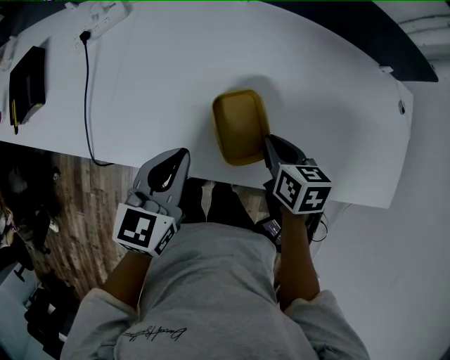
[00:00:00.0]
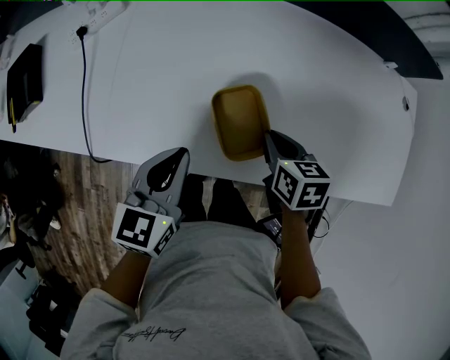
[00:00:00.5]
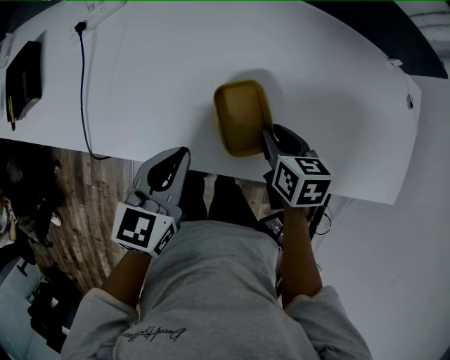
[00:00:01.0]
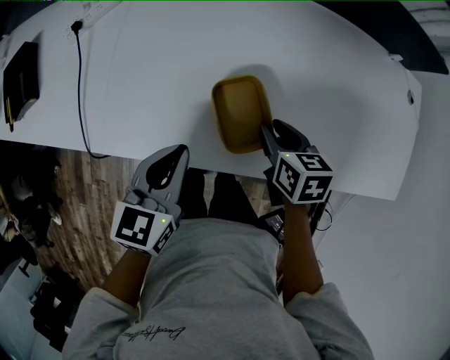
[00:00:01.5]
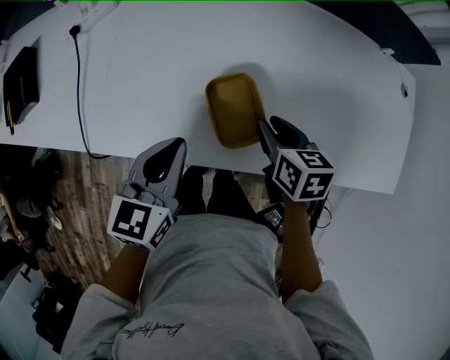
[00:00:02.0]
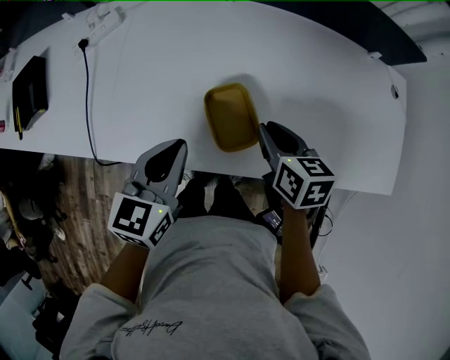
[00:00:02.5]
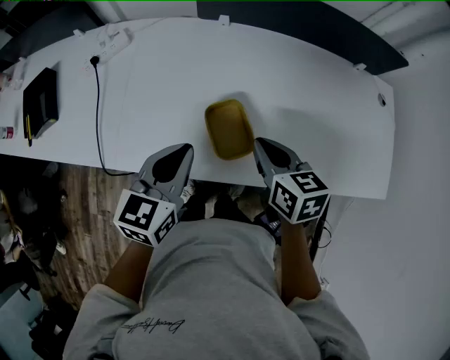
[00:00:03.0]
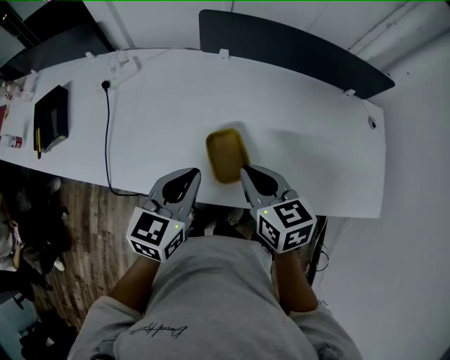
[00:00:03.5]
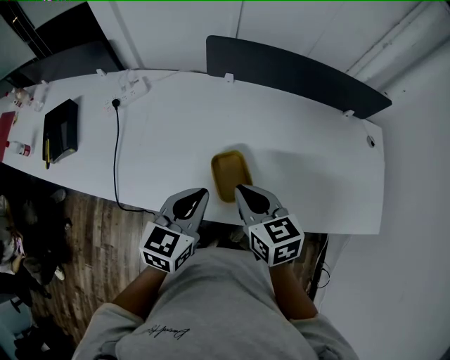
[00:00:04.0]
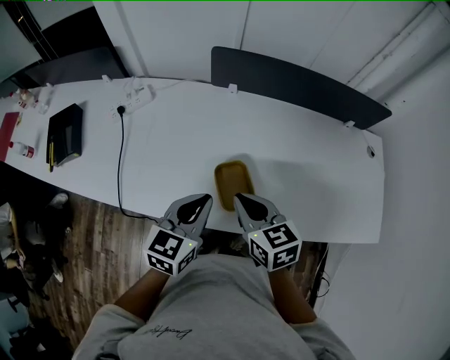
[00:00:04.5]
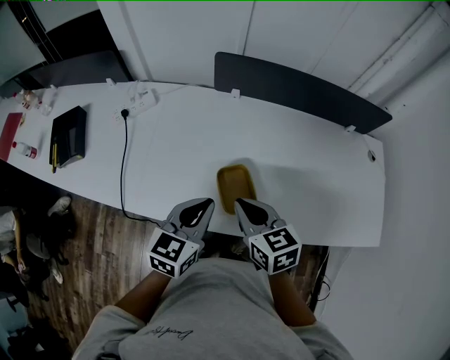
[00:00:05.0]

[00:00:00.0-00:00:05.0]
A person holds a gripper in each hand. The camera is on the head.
00:00:00.0 to 00:00:02.5: There are only small adjustments of the grippers.
00:00:02.5 to 00:00:05.0: The right gripper heads upward and to the left, covering approximately 15 cm, and rotates approximately 20 degrees. The left gripper is displaced upward by roughly 5 cm.

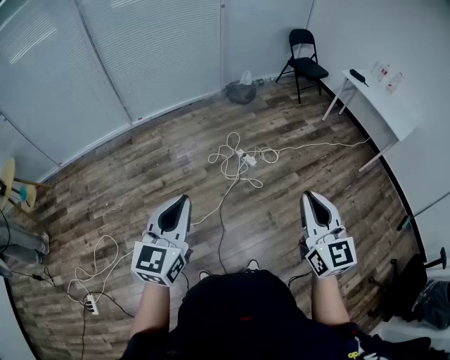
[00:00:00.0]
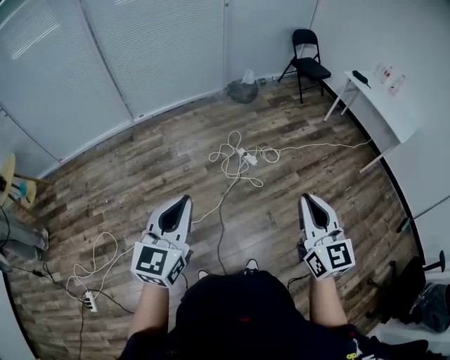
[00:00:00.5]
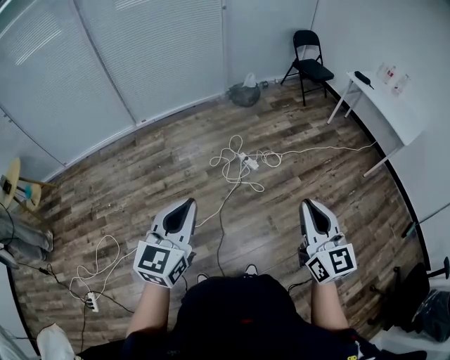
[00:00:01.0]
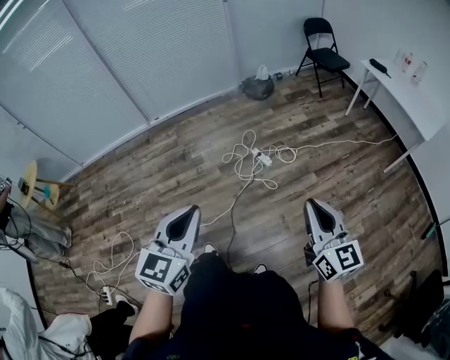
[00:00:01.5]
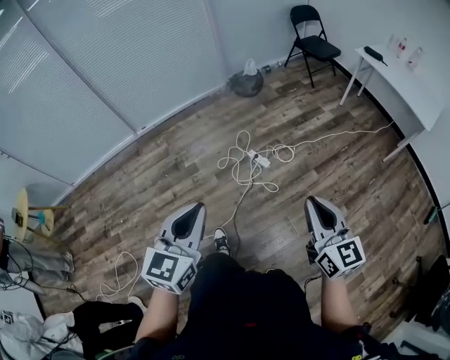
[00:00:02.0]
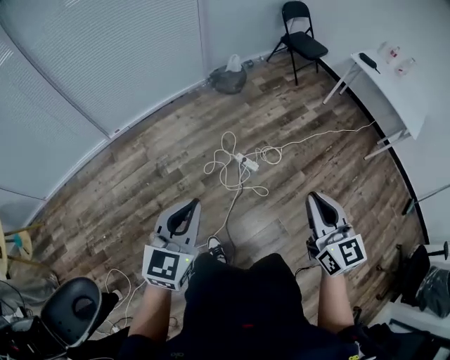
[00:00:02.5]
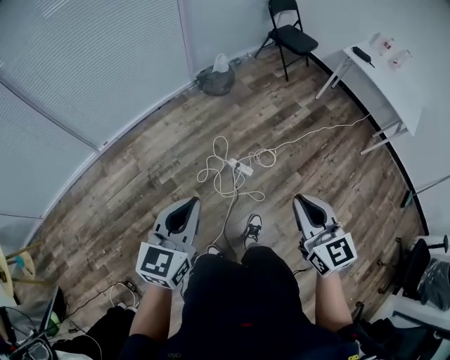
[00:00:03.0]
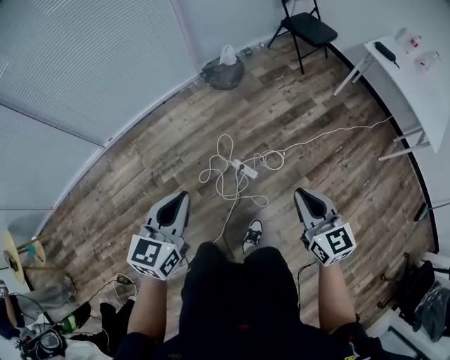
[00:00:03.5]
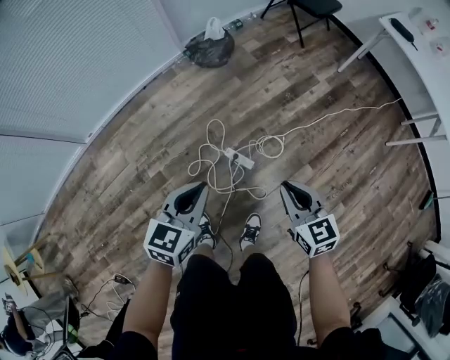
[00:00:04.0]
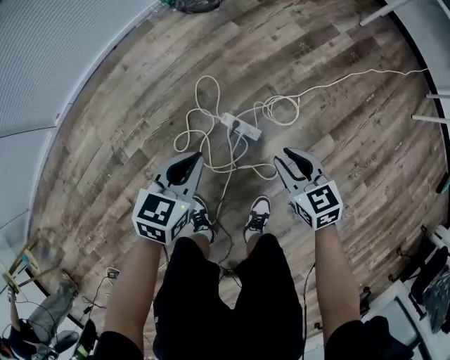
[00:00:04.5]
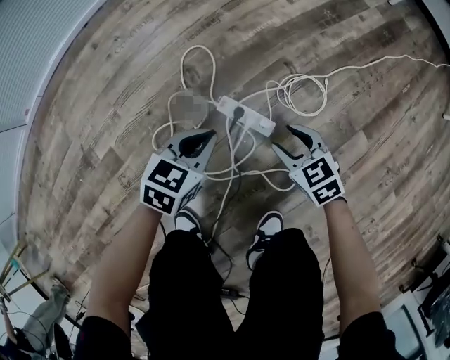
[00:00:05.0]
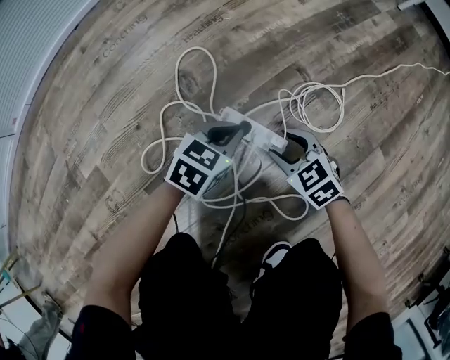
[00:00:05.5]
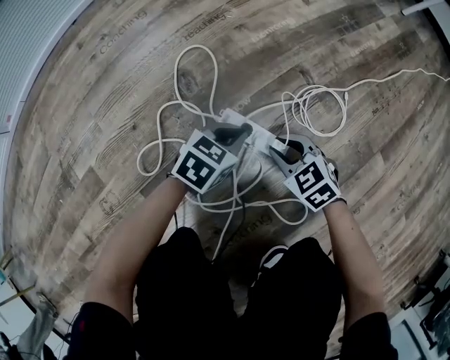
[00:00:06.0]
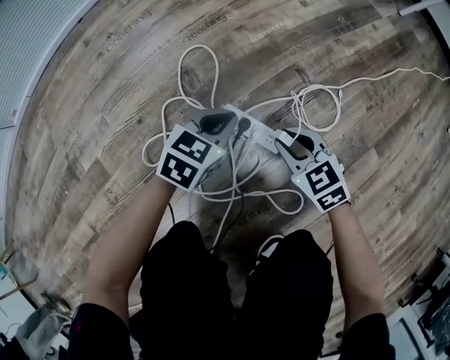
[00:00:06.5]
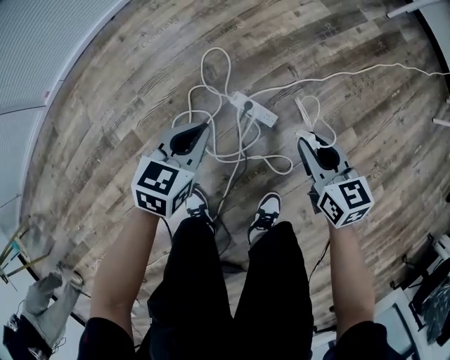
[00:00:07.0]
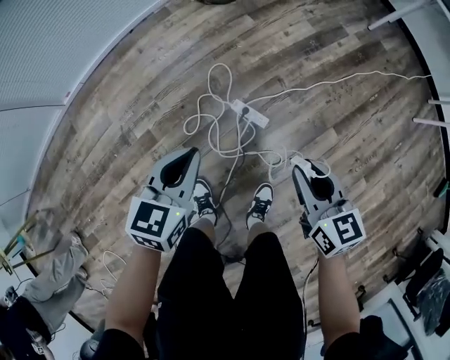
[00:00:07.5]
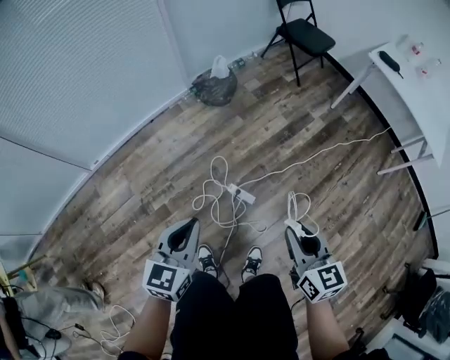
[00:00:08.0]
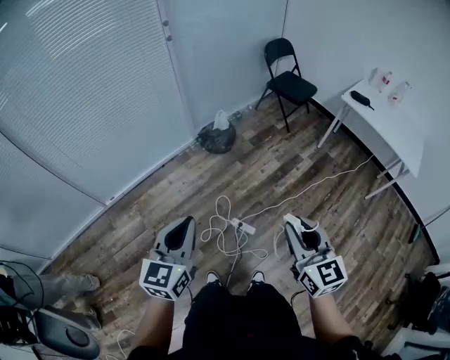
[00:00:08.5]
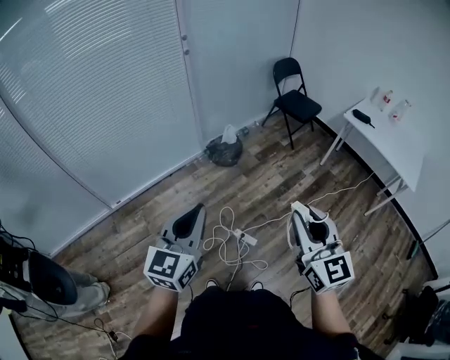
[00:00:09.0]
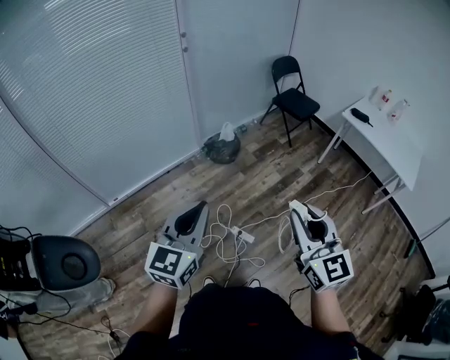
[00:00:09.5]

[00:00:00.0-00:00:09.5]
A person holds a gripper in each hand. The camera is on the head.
00:00:00.0 to 00:00:02.0: The left gripper travels forward and to the right by approximately 20 cm. Meanwhile the right gripper moves forward, downward and to the right, approximately 25 cm.
00:00:02.0 to 00:00:04.0: Both grippers are carried forward, about 50 cm. The two grippers go approximately 30 cm downward. The left gripper changes its angle by approximately 20 degrees; the right gripper changes its angle by some 20 degrees.
00:00:04.0 to 00:00:05.5: Both grippers move downward, some 80 cm. The right gripper changes its angle by approximately 30 degrees, and opens up, while the left gripper changes its angle by roughly 20 degrees.
00:00:05.5 to 00:00:07.5: Both grippers move upward, roughly 60 cm. The left gripper swivels approximately 30 degrees. Meanwhile the right gripper changes its angle by approximately 40 degrees, and closes.
00:00:07.5 to 00:00:09.5: Both grippers travel together upward, approximately 60 cm. The left gripper points its fingers roughly 30 degrees further upward. Meanwhile the right gripper rotates roughly 40 degrees.

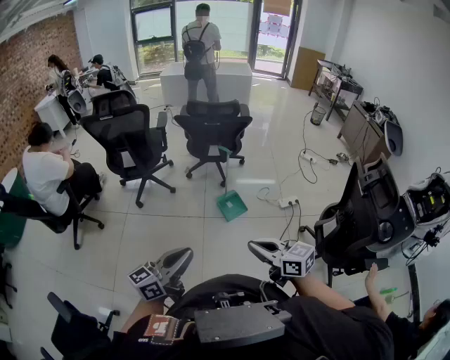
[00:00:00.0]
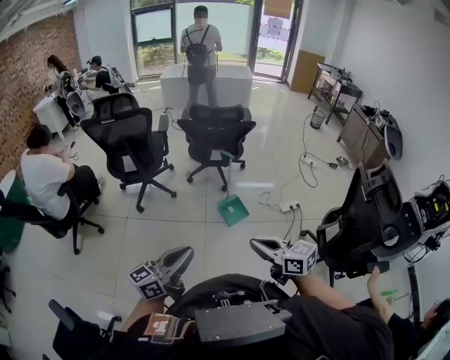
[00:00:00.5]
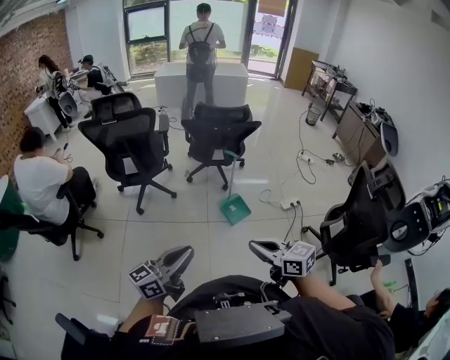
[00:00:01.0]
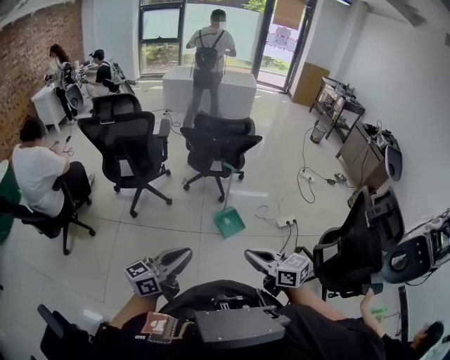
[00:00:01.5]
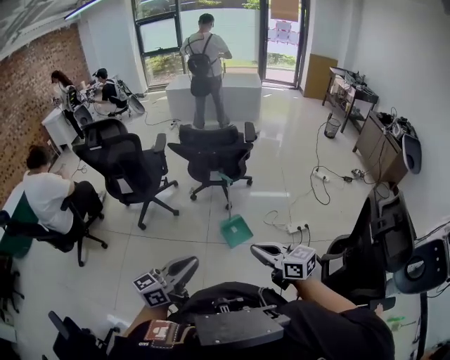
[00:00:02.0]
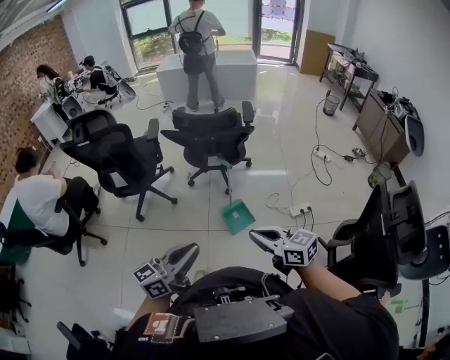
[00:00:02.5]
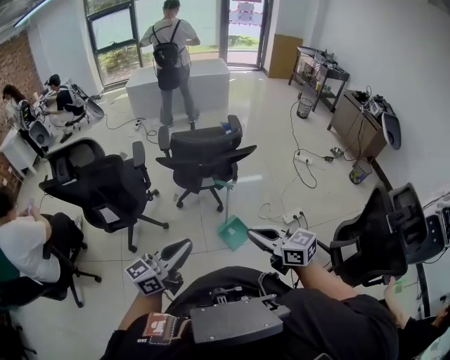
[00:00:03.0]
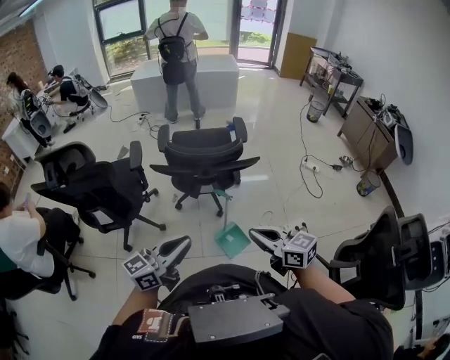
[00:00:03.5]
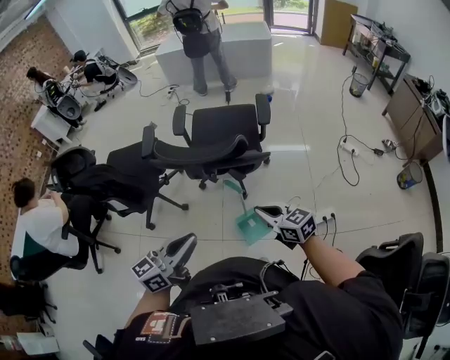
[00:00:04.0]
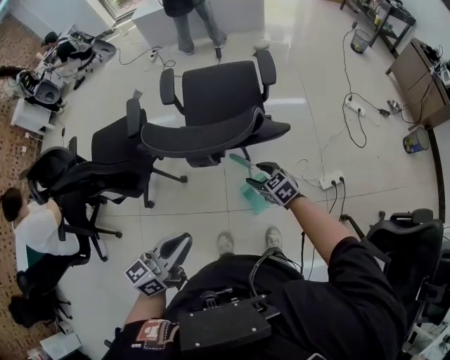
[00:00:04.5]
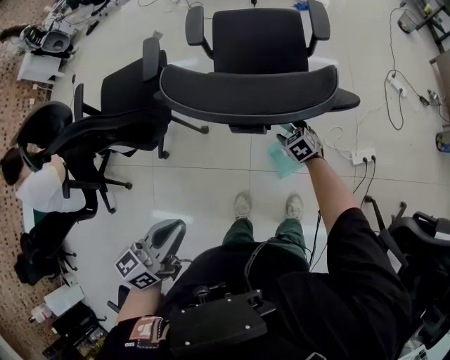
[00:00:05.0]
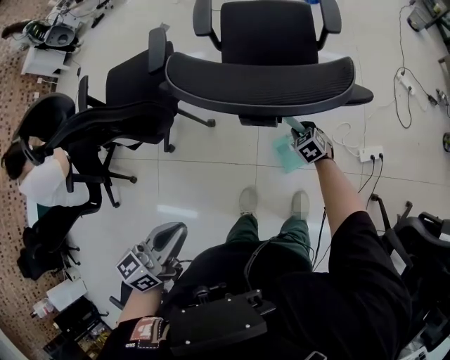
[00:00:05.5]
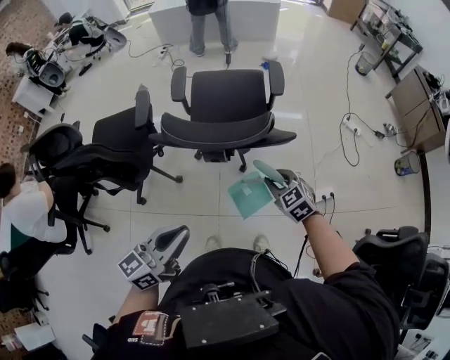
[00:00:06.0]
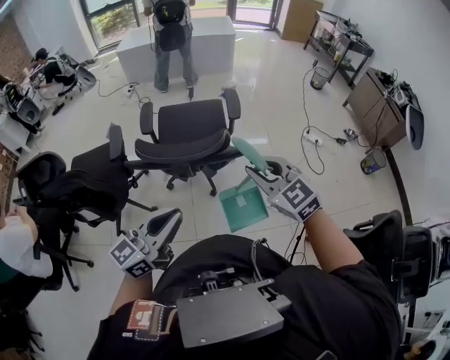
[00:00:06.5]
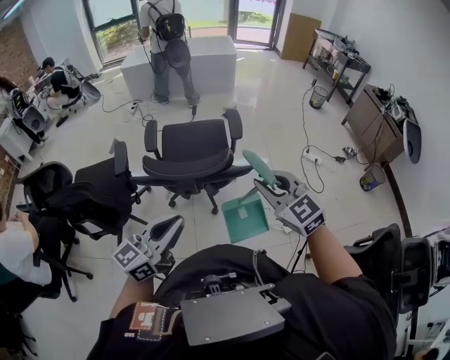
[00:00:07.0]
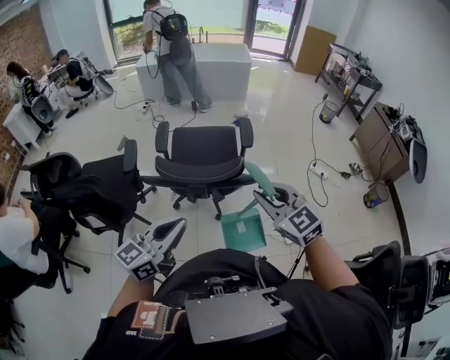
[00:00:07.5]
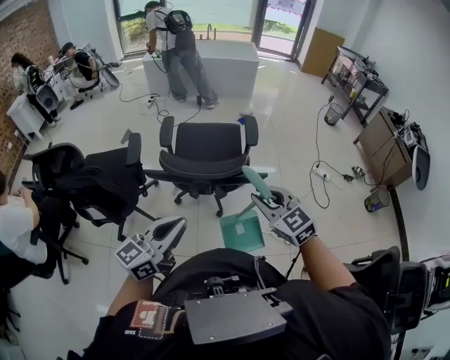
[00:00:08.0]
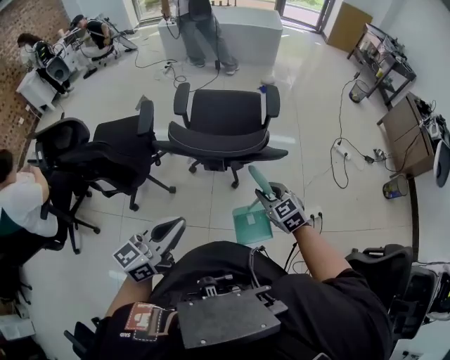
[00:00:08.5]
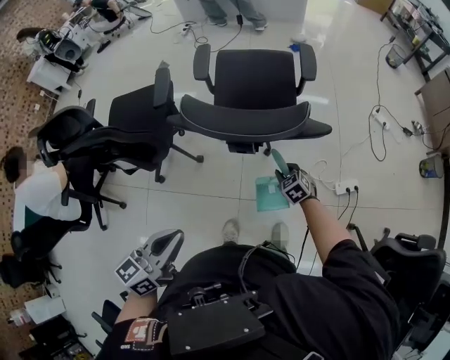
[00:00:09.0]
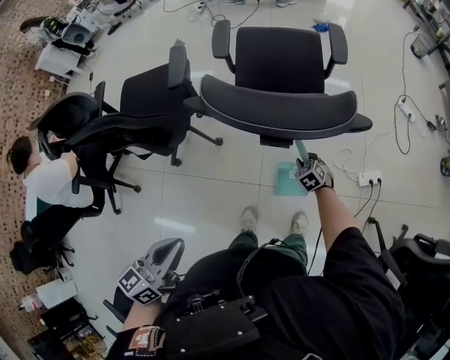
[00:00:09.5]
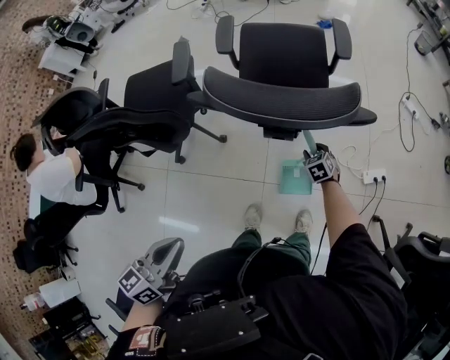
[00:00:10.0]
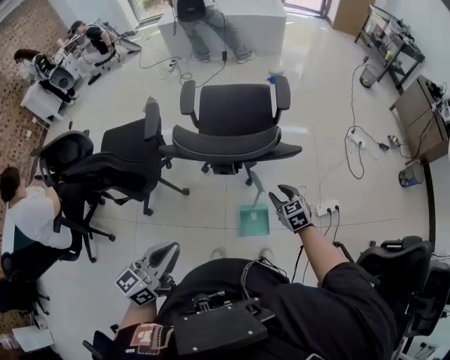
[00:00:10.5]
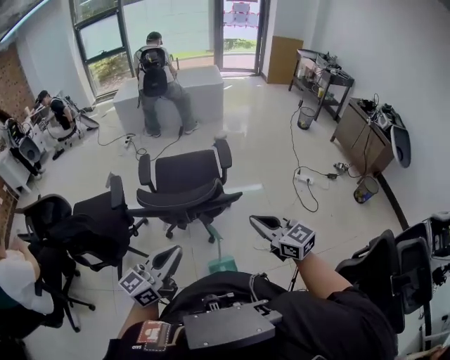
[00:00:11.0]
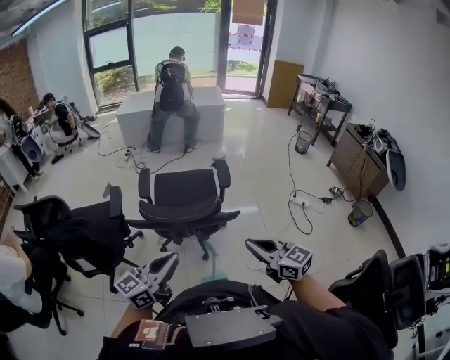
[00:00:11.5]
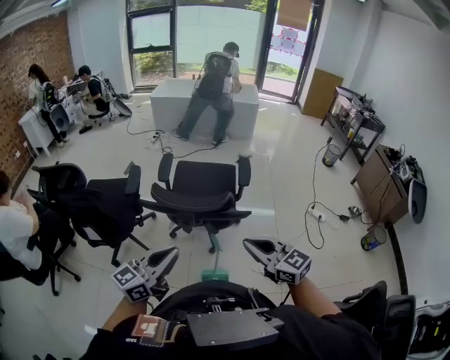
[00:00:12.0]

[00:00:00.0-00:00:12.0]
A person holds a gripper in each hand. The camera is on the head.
00:00:00.0 to 00:00:02.0: Both grippers travel together forward and to the right, roughly 30 cm.
00:00:02.0 to 00:00:04.0: The two grippers travel together, forward, about 60 cm.
00:00:04.0 to 00:00:06.0: The right gripper shifts approximately 15 cm forward and to the left, reaches approximately 50 cm downward, then returns, swivels approximately 30 degrees, and opens, then closes again; the left gripper goes some 20 cm to the left, forward and downward.
00:00:06.0 to 00:00:08.0: The right gripper heads upward, covering approximately 25 cm, and changes its angle by some 20 degrees. The left gripper heads upward, covering some 10 cm.
00:00:08.0 to 00:00:10.0: The right gripper heads downward, covering approximately 60 cm, and points its fingers approximately 40 degrees further downward; the left gripper moves downward and to the left, about 30 cm, and swivels roughly 30 degrees.
00:00:10.0 to 00:00:12.0: The right gripper goes roughly 70 cm upward and backward, points its fingers approximately 50 degrees further upward, and closes its fingers. Meanwhile the left gripper moves upward and to the right, approximately 35 cm, and rotates about 30 degrees.
